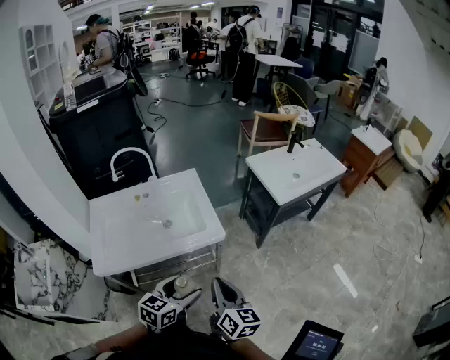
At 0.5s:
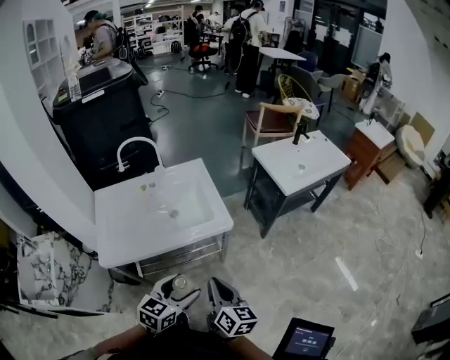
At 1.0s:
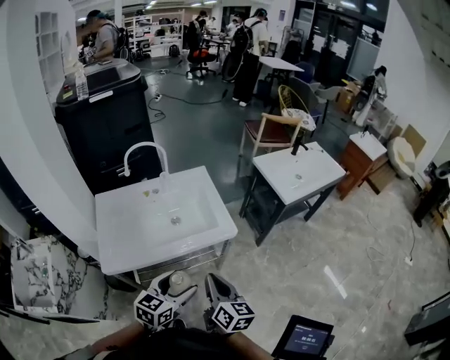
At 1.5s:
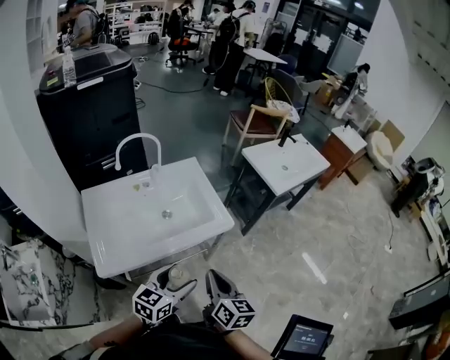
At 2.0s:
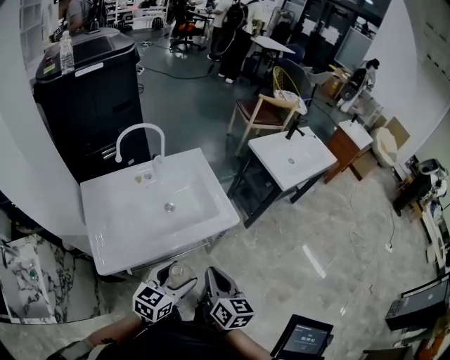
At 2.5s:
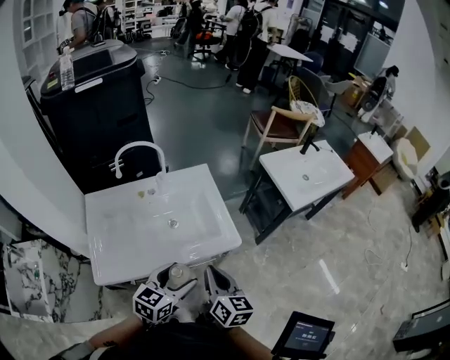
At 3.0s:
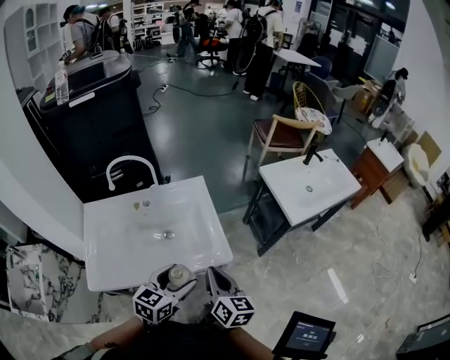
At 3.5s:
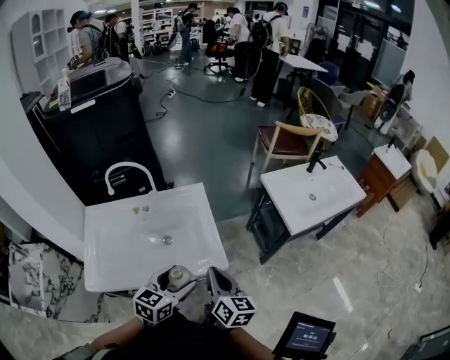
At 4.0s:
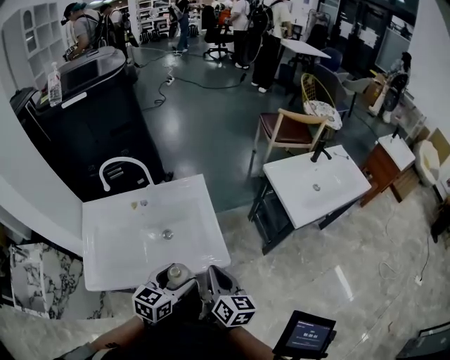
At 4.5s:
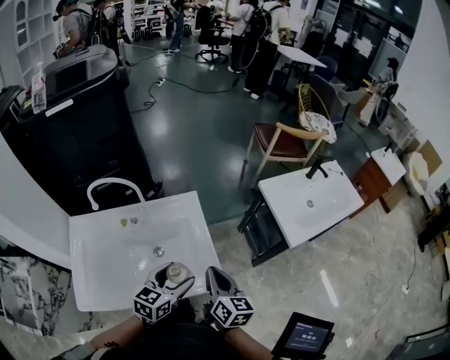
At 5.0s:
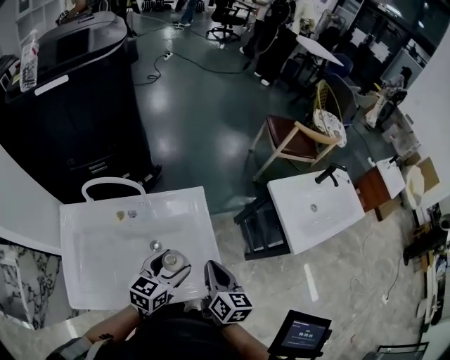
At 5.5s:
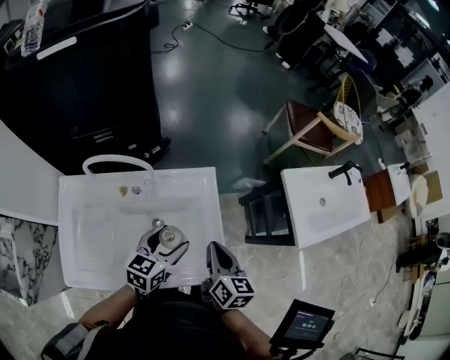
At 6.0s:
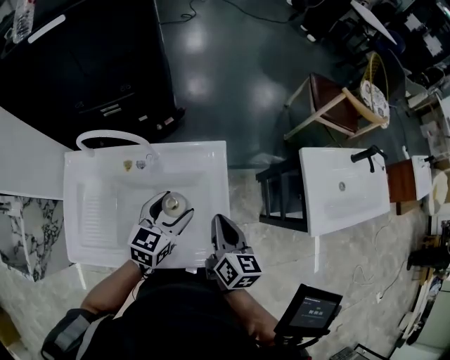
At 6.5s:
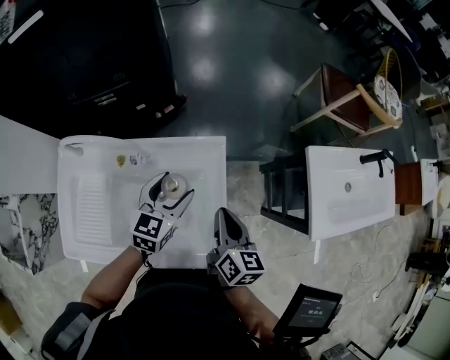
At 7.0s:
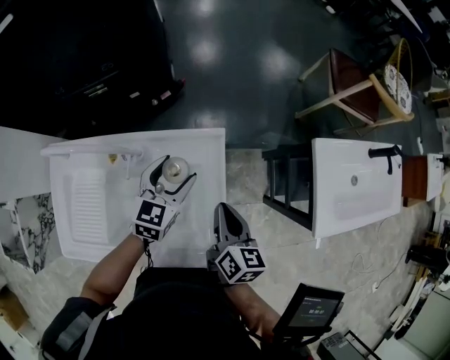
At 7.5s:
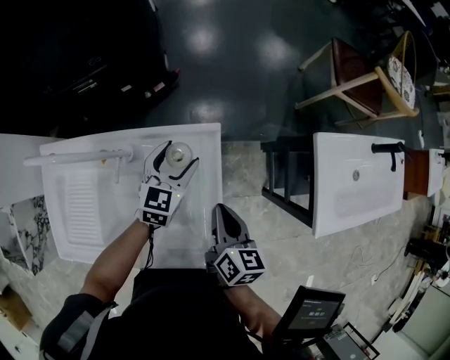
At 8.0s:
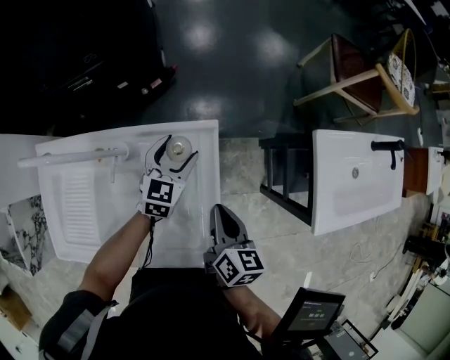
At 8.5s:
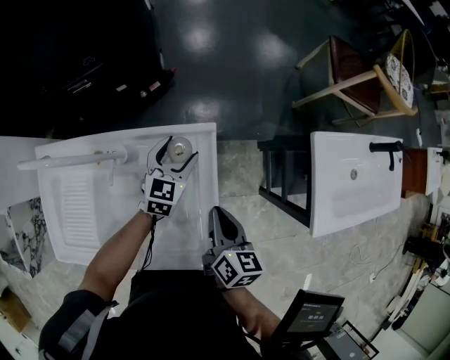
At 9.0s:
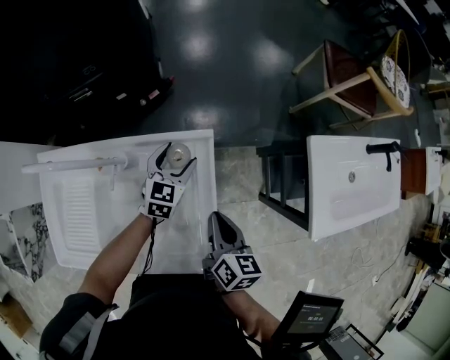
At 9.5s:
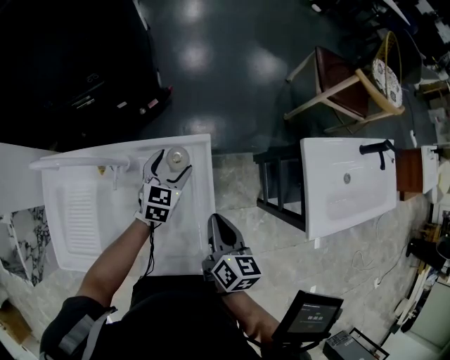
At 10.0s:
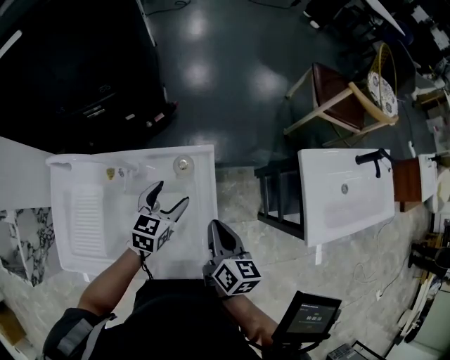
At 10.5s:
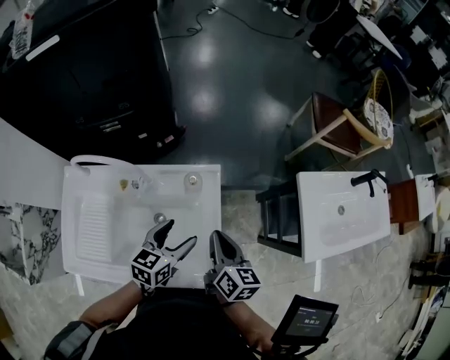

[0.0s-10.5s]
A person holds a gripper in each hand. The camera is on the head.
0.0s to 2.0s: The grippers both shift to the left by about 15 cm.
2.0s to 4.0s: Both grippers travel together forward and to the right, approximately 20 cm.
4.0s to 6.5s: Both grippers travel together forward, some 30 cm.
6.5s to 8.5s: The left gripper shifts approximately 15 cm downward and forward; the right gripper moves downward, some 5 cm.
8.5s to 10.5s: The left gripper heads backward and upward, covering approximately 20 cm, and swivels about 20 degrees. The right gripper goes approximately 10 cm upward.

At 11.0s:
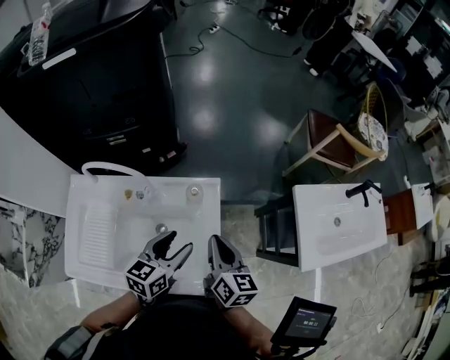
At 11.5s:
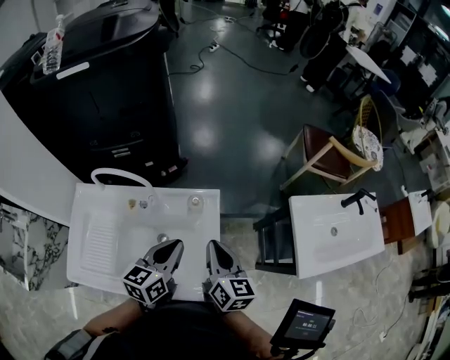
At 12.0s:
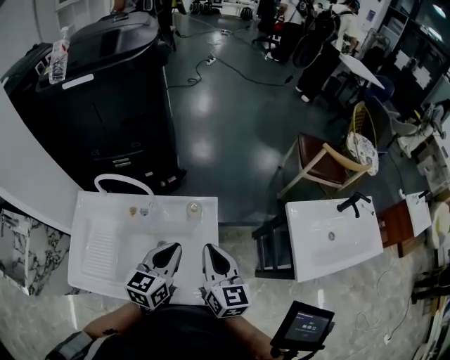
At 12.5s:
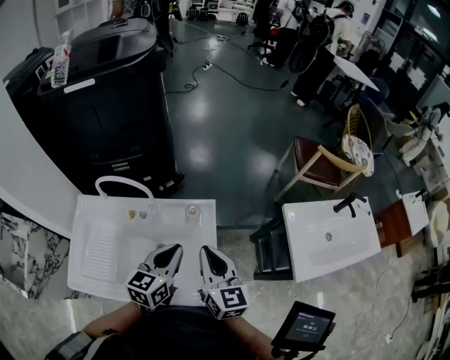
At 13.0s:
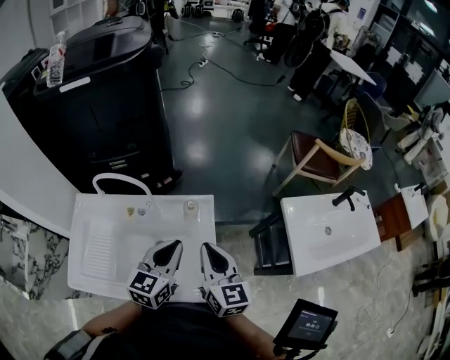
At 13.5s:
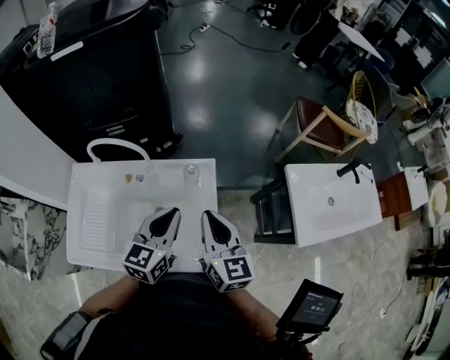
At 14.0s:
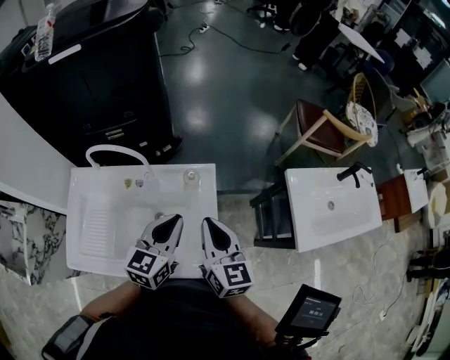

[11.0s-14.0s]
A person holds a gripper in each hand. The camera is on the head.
11.0s to 12.5s: Both grippers move upward, approximately 5 cm. The left gripper closes, while the right gripper swivels about 20 degrees.
12.5s to 14.0s: There are only small adjustments of the grippers.

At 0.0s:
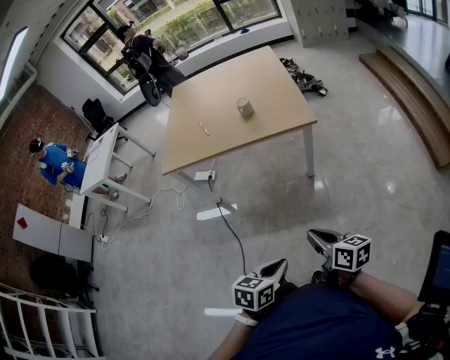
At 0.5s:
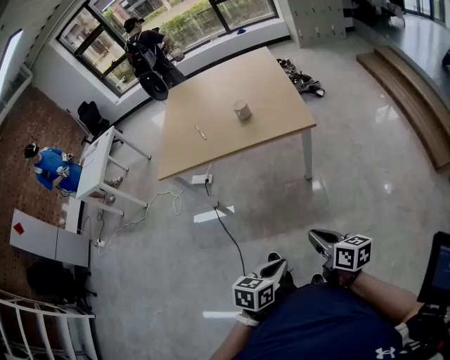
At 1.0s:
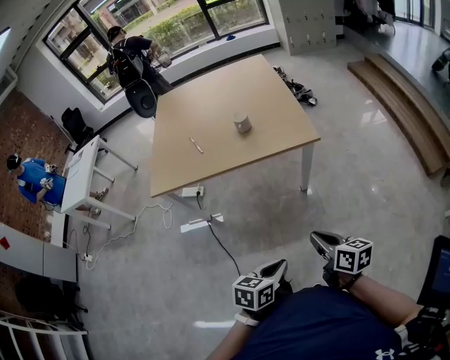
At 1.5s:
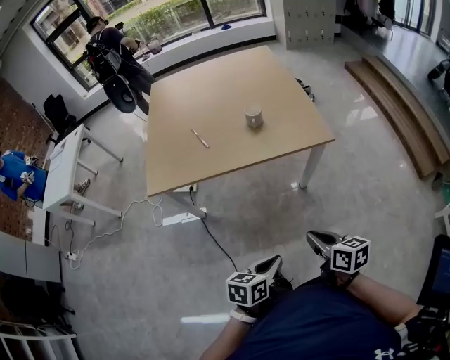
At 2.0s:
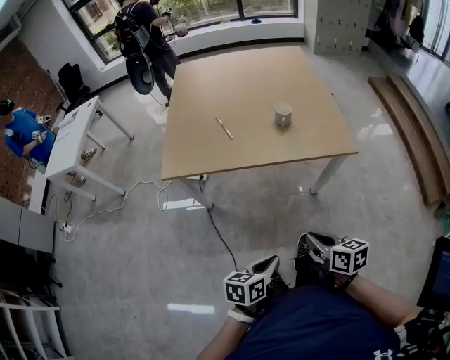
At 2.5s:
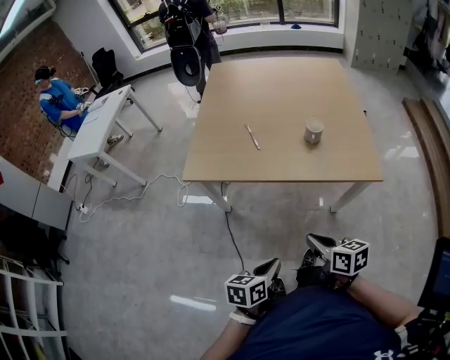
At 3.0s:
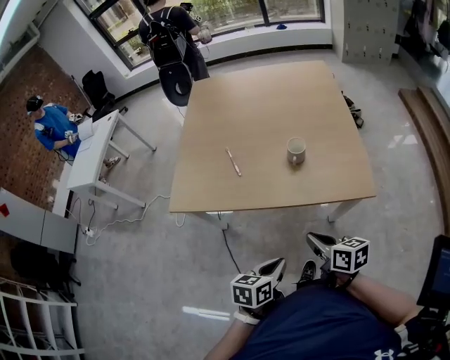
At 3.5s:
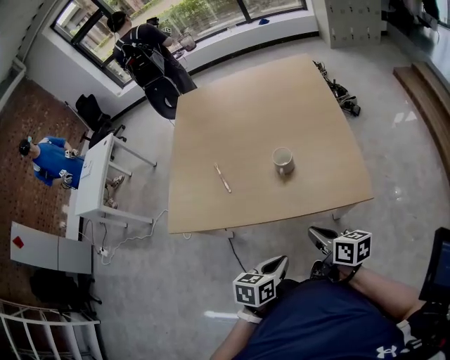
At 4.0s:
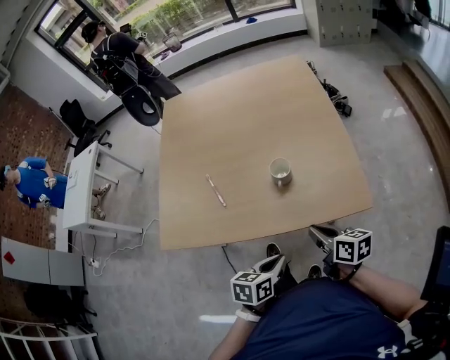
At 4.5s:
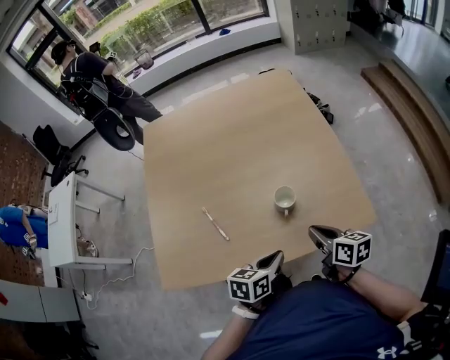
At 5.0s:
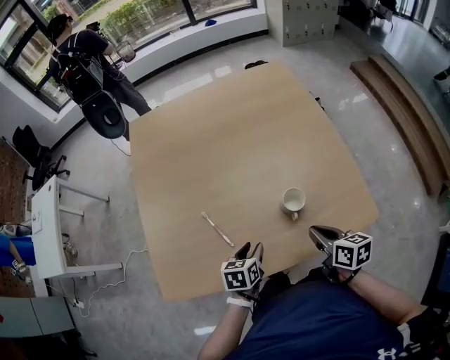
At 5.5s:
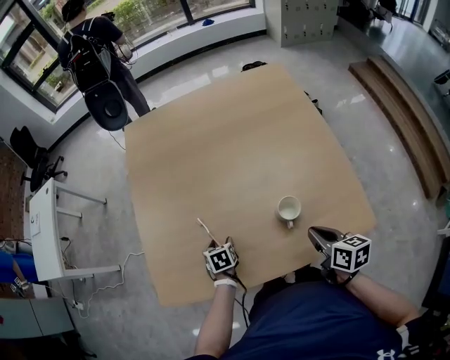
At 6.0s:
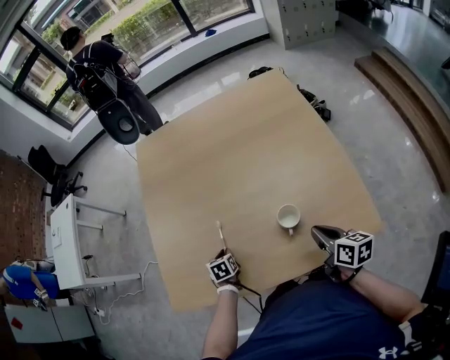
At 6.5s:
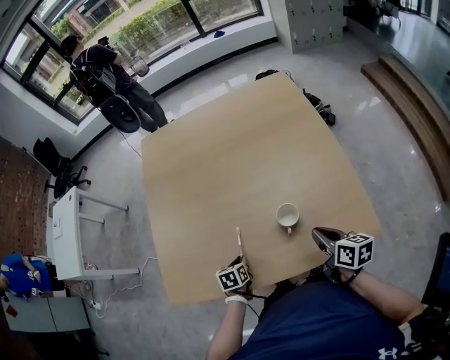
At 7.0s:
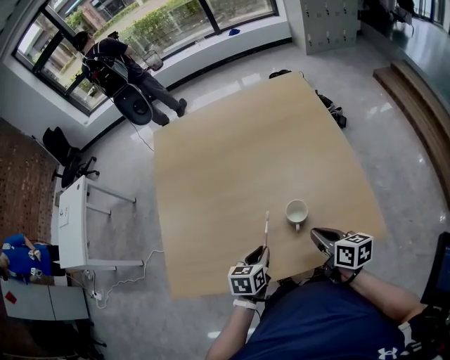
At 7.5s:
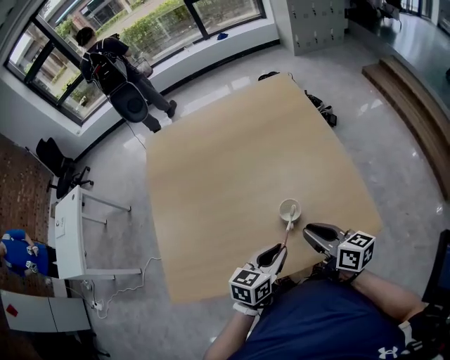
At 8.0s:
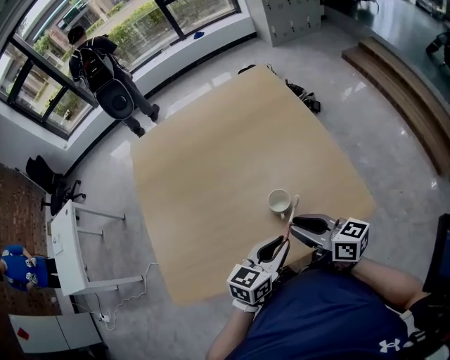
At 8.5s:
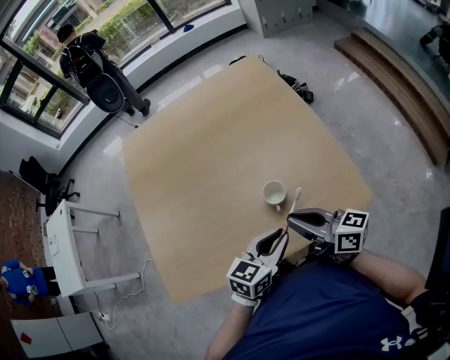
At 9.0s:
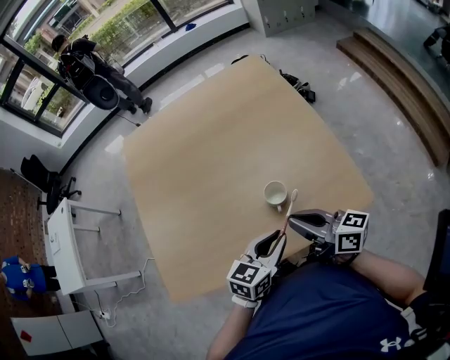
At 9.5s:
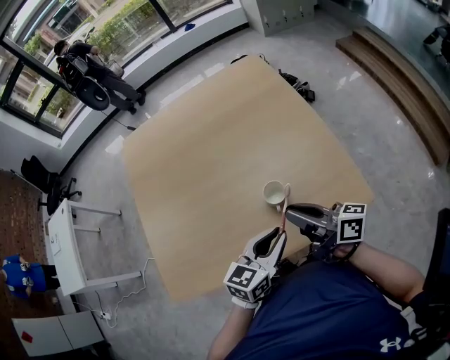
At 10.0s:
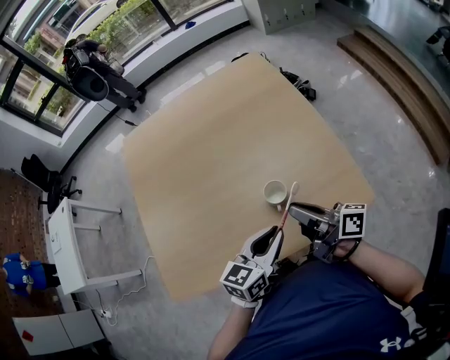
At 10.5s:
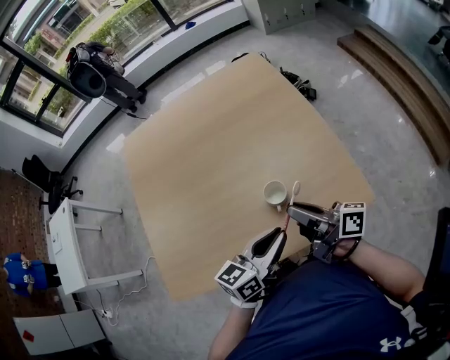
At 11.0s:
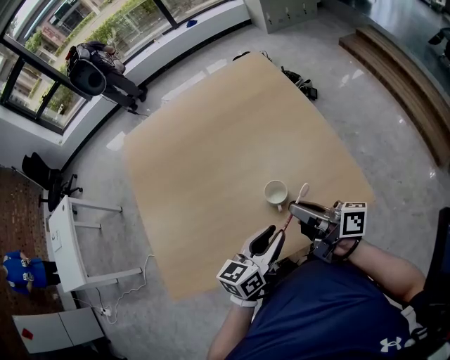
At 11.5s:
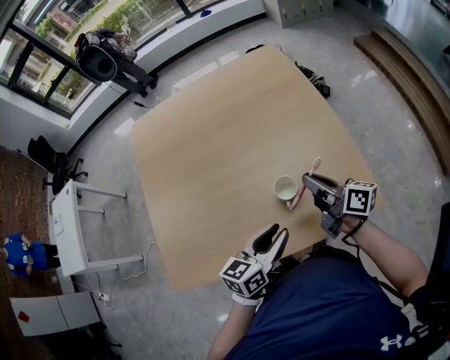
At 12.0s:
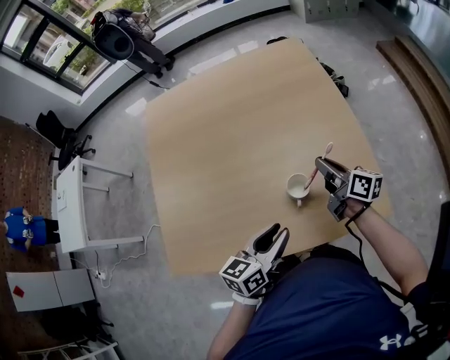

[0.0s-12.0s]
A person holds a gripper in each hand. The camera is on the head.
0.0s to 2.0s: The two grippers go about 25 cm to the left and forward.
2.0s to 4.0s: The two grippers go some 30 cm forward.
4.0s to 6.0s: The left gripper shifts roughly 40 cm forward, to the left and downward, rotates some 30 degrees, and opens, then closes once more. The right gripper goes roughly 15 cm forward.
6.0s to 8.0s: The right gripper heads upward and to the left, covering approximately 10 cm, changes its angle by approximately 30 degrees, and opens up. Meanwhile the left gripper shifts approximately 35 cm to the right and upward, and tips its fingers upward by some 40 degrees.
8.0s to 10.0s: The right gripper changes its angle by approximately 30 degrees.
10.0s to 12.0s: The right gripper moves forward and downward, roughly 15 cm, and changes its angle by about 20 degrees.

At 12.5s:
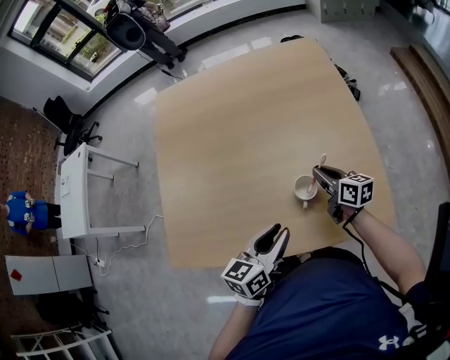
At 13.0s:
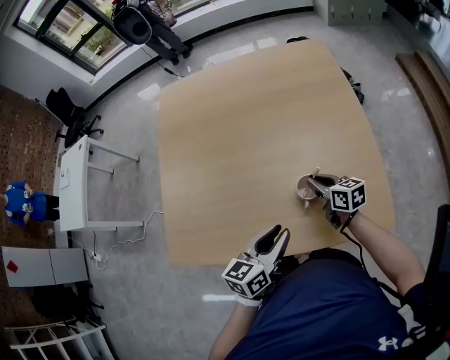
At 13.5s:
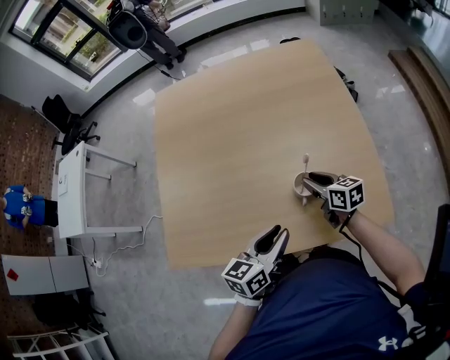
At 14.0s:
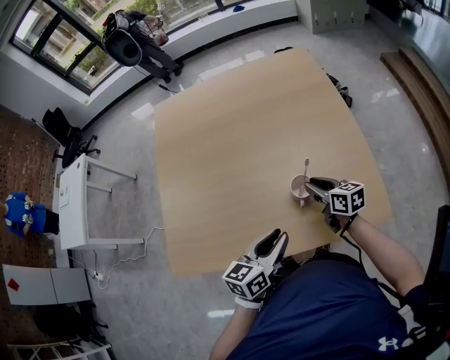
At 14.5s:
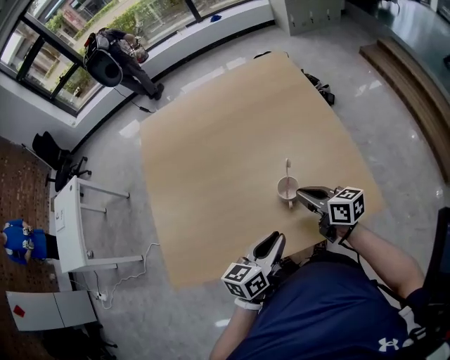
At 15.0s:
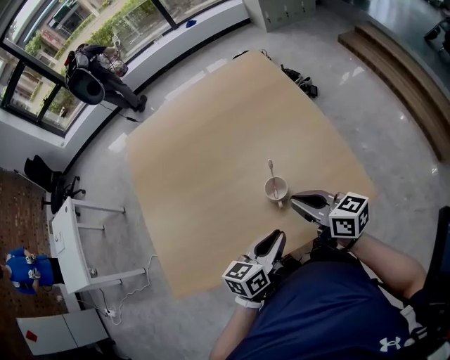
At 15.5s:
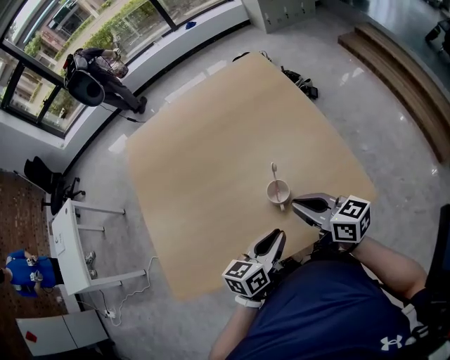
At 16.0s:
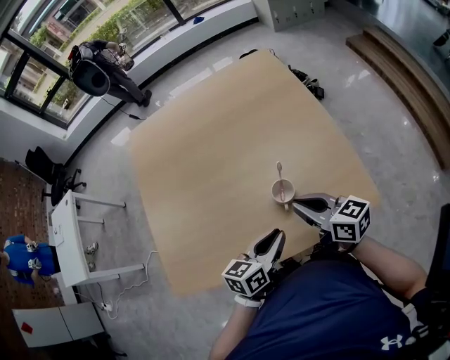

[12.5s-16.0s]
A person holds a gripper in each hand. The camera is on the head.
12.5s to 14.5s: The right gripper heads backward and upward, covering some 10 cm, and opens, then closes again.
14.5s to 16.0s: The right gripper shifts some 5 cm upward.
